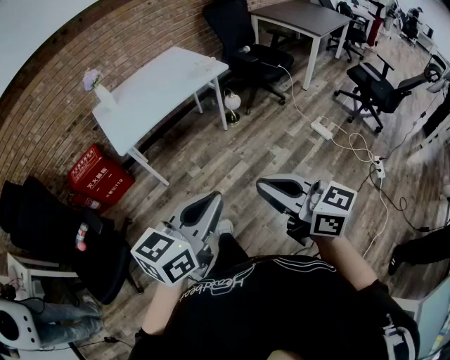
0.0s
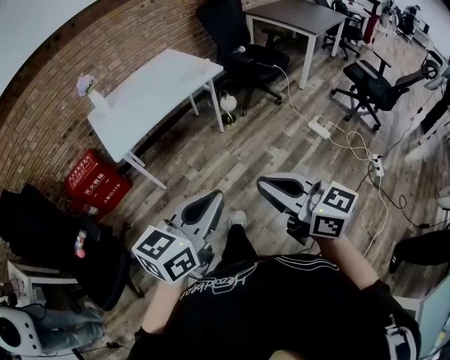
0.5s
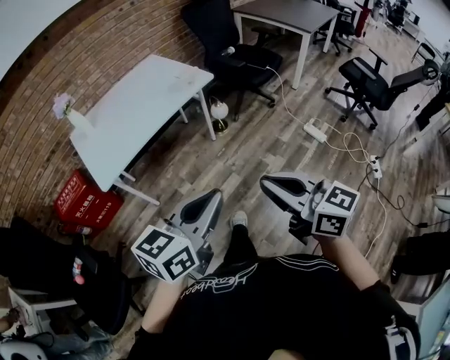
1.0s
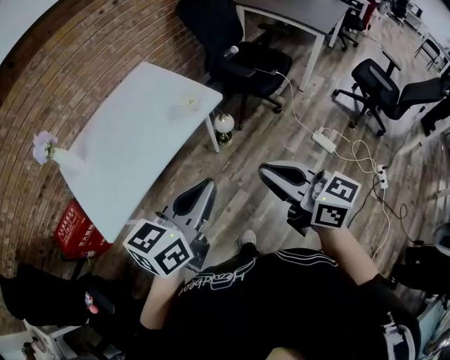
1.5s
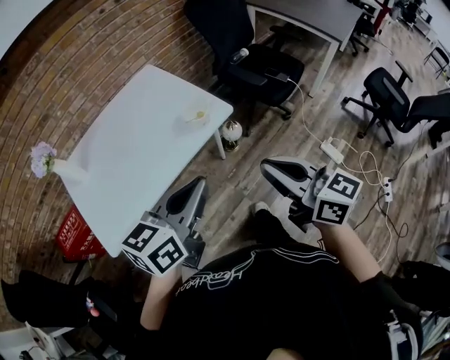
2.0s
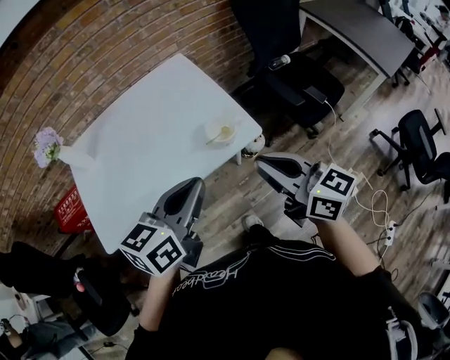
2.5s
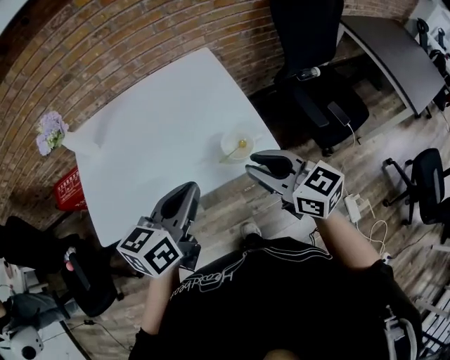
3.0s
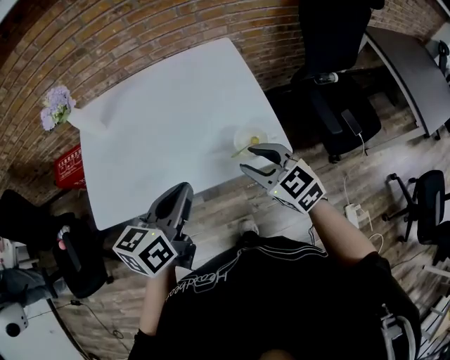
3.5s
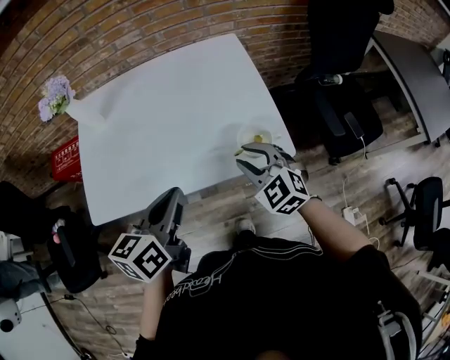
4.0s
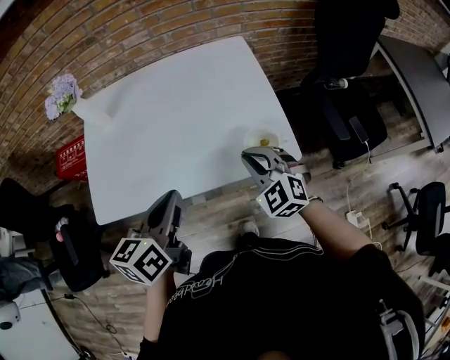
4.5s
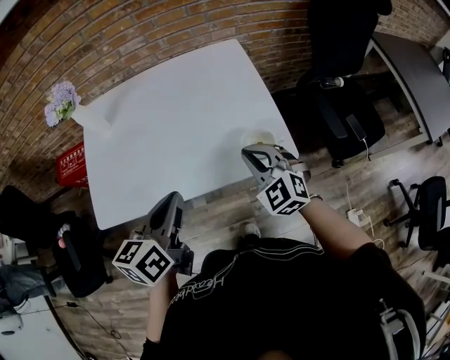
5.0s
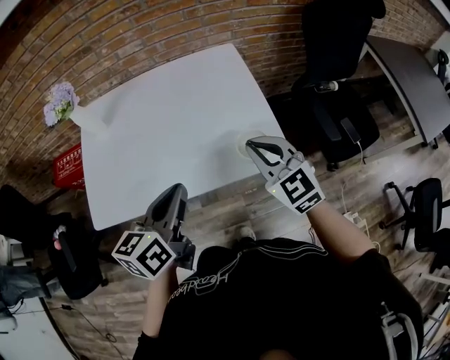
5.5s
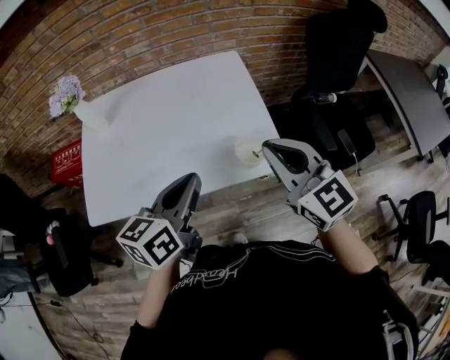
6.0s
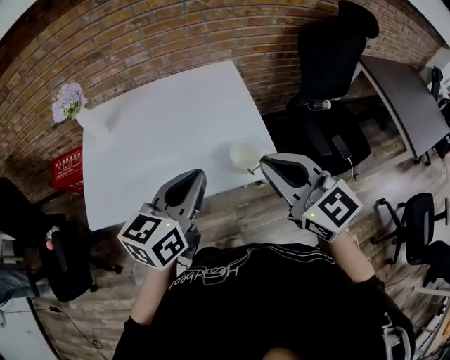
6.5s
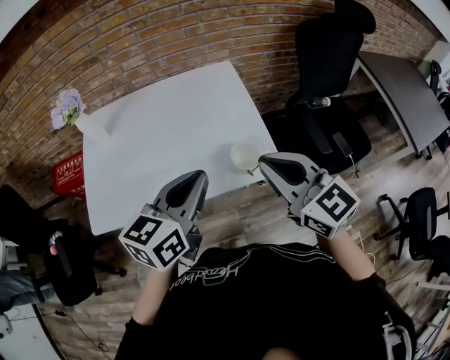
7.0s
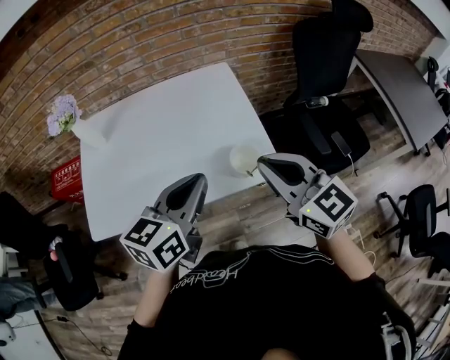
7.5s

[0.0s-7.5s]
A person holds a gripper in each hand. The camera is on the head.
0.0s to 2.0s: The pair of grippers is taken forward, approximately 50 cm.
2.0s to 4.0s: The left gripper moves about 20 cm, and swivels about 40 degrees. Meanwhile the right gripper shifts by some 35 cm, rolls counterclockwise, seen from behind, by roughly 60 degrees, and opens.
4.0s to 5.5s: The right gripper travels upward by roughly 10 cm, and closes its fingers.
5.5s to 7.5s: The left gripper travels to the right by about 5 cm, while the right gripper travels upward by roughly 10 cm.

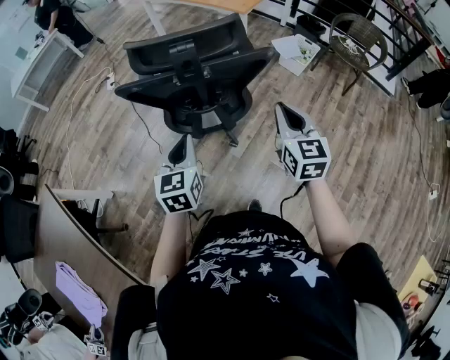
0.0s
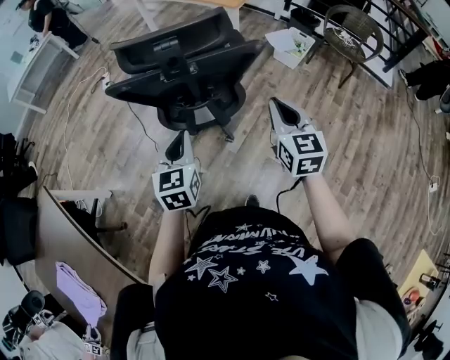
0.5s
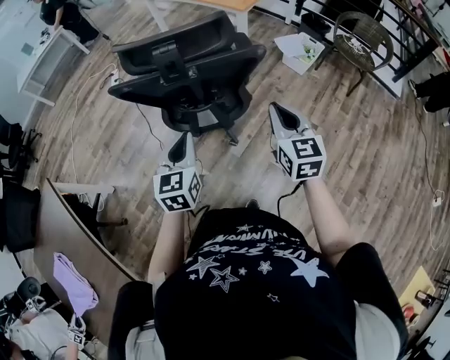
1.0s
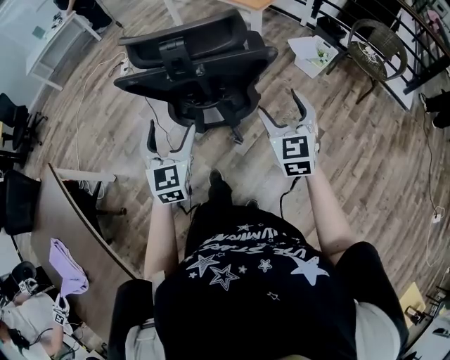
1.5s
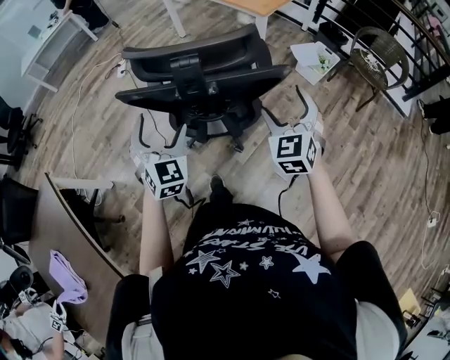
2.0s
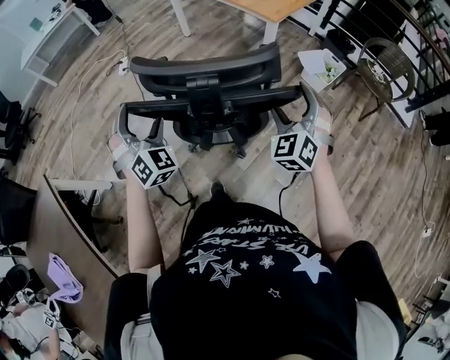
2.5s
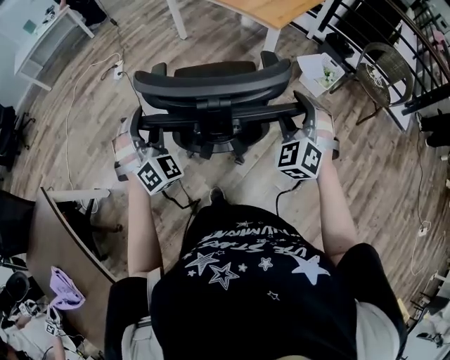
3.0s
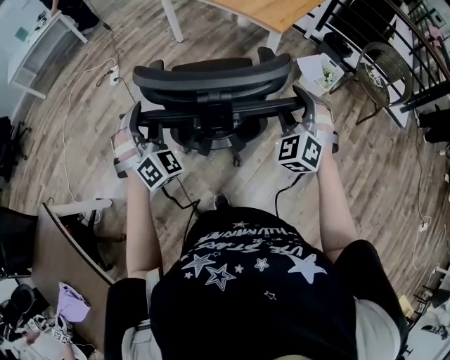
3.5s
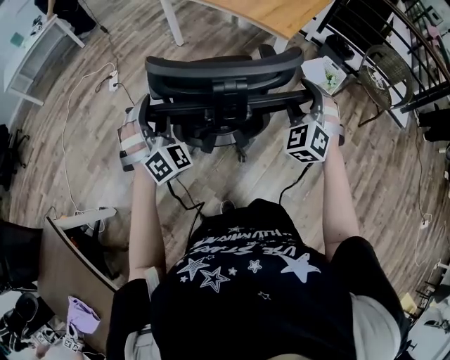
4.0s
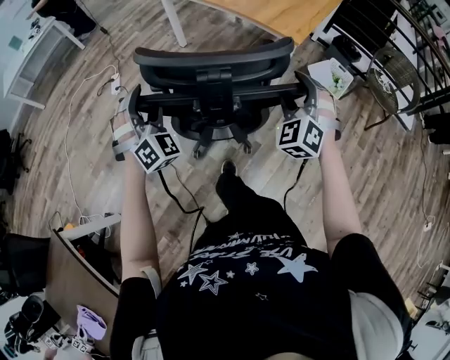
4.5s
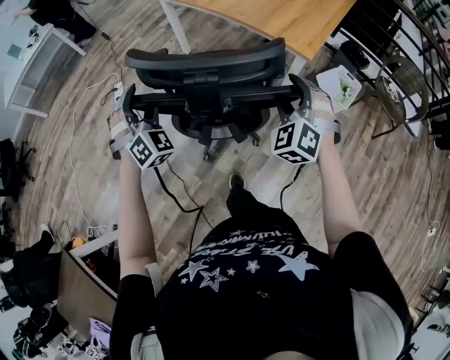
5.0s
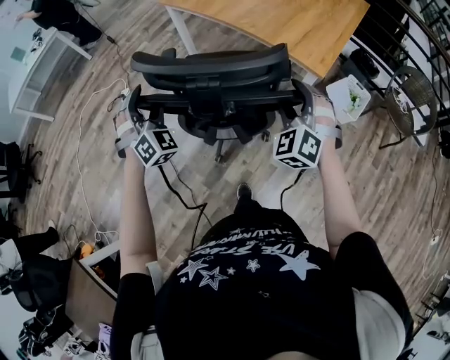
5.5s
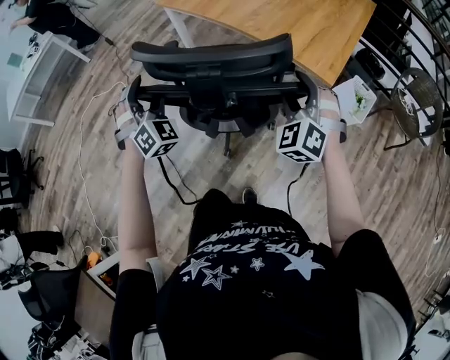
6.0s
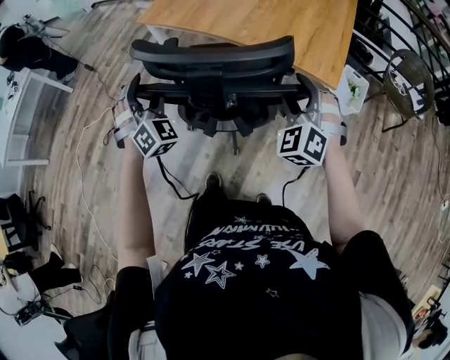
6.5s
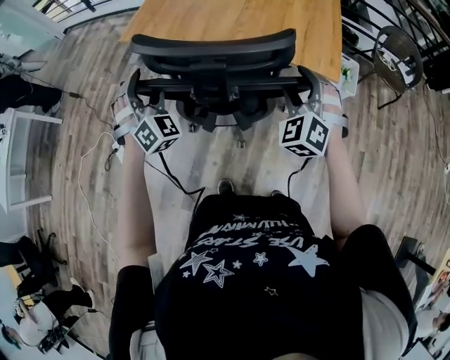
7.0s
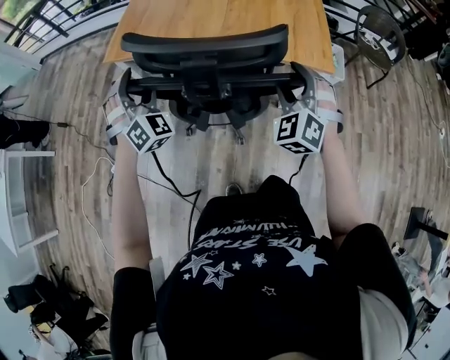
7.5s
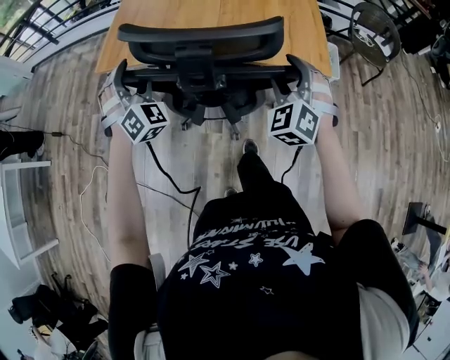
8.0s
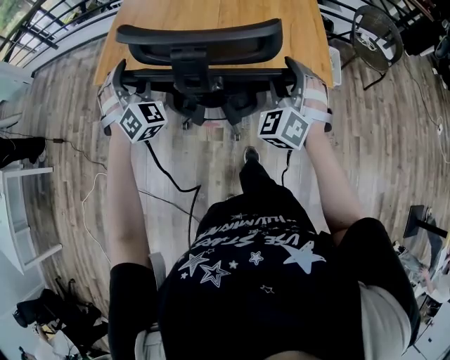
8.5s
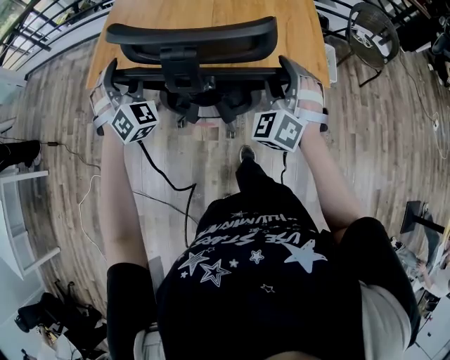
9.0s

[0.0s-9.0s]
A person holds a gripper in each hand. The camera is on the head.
0.0s to 2.0s: Both grippers move forward, about 10 cm. The left gripper swivels some 40 degrees, and opens up, while the right gripper swivels about 30 degrees, and opens its fingers.
2.0s to 4.5s: The grippers both shift forward by some 35 cm. The right gripper swivels about 30 degrees, and closes its fingers. Meanwhile the left gripper turns by approximately 30 degrees, and closes its fingers.
4.5s to 7.0s: Both grippers travel together forward, roughly 40 cm. The right gripper changes its angle by some 20 degrees. Meanwhile the left gripper turns by some 20 degrees.
7.0s to 9.0s: The right gripper goes about 10 cm forward, while the left gripper heads forward, covering about 20 cm.

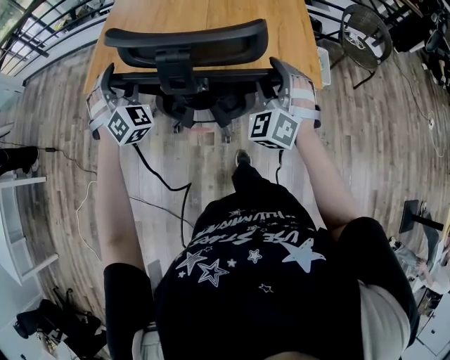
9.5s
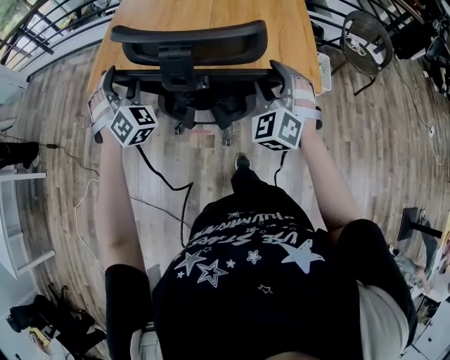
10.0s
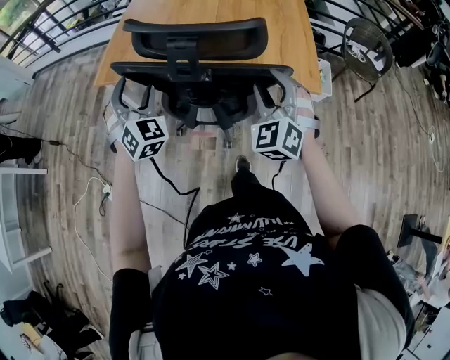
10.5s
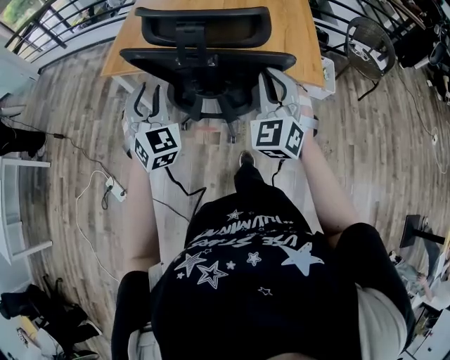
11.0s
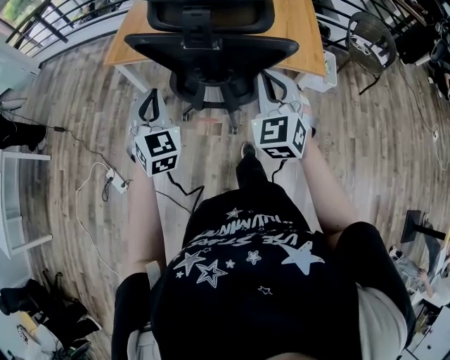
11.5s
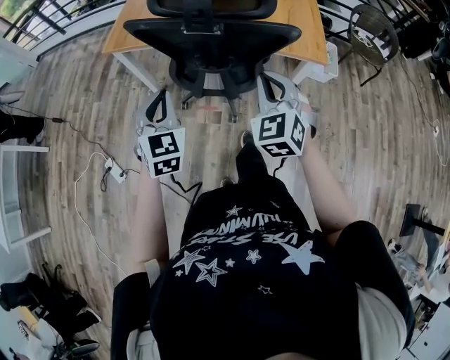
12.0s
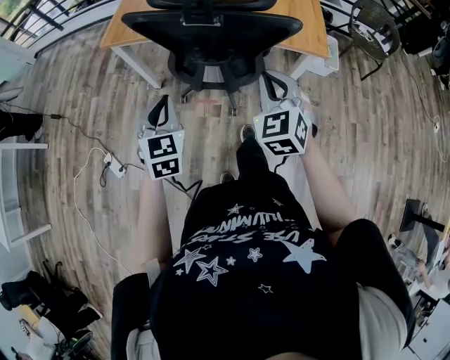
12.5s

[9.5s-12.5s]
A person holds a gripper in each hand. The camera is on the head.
9.5s to 11.0s: The left gripper heads backward, covering roughly 15 cm, changes its angle by approximately 30 degrees, and closes its fingers. Meanwhile the right gripper travels backward and upward by roughly 10 cm, and closes its fingers.
11.0s to 12.5s: The grippers both shift backward and downward by approximately 10 cm. The left gripper turns by about 30 degrees.

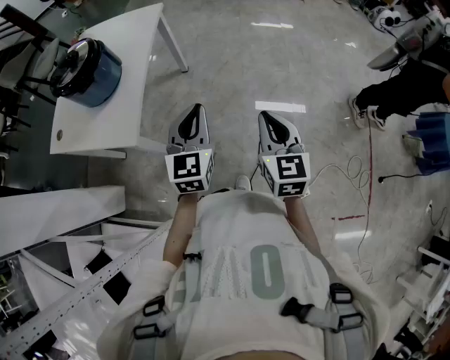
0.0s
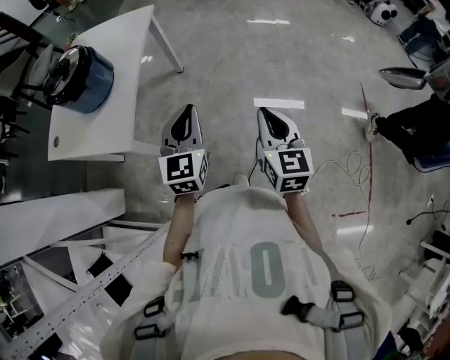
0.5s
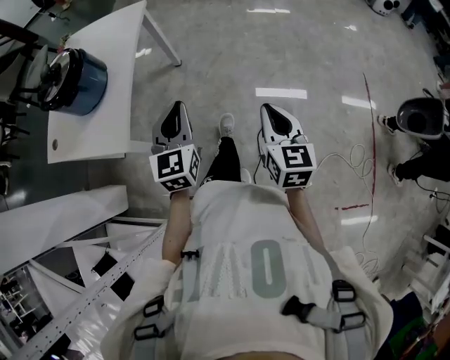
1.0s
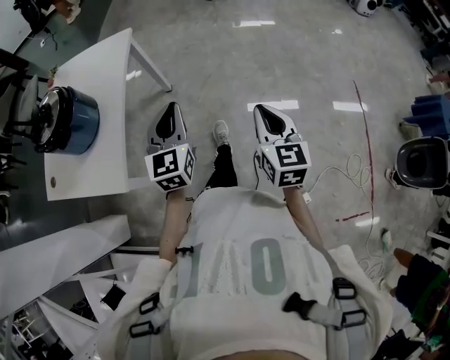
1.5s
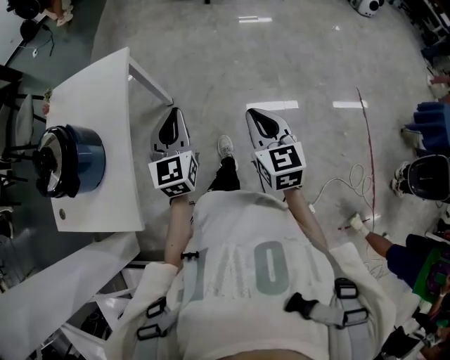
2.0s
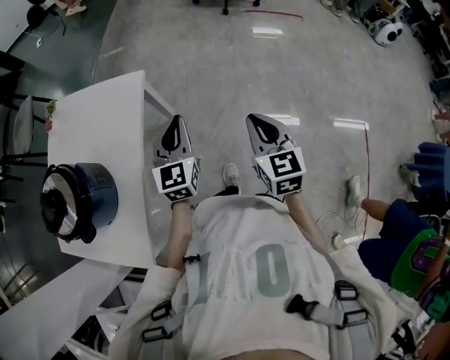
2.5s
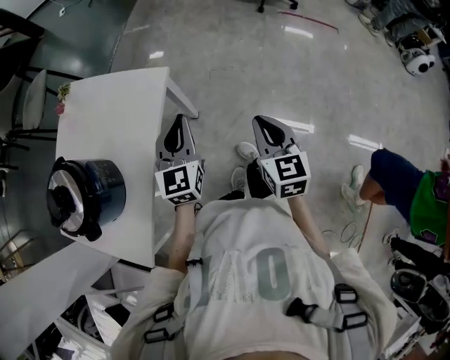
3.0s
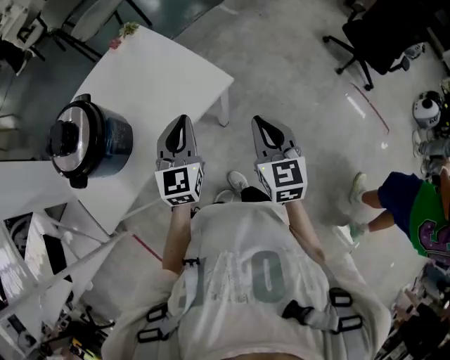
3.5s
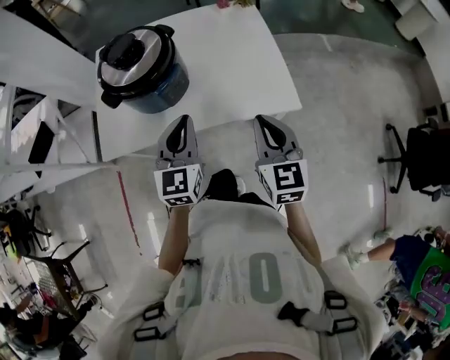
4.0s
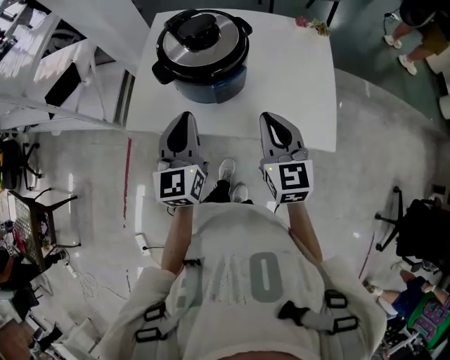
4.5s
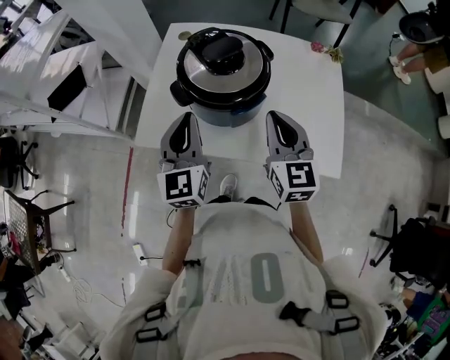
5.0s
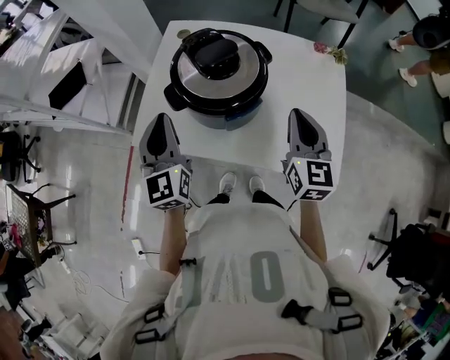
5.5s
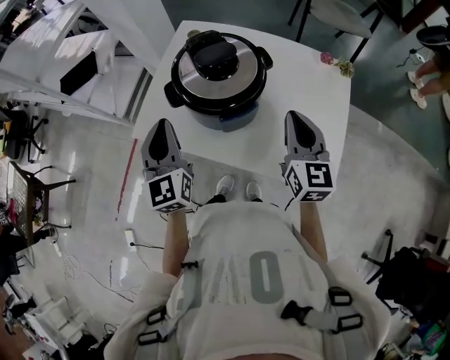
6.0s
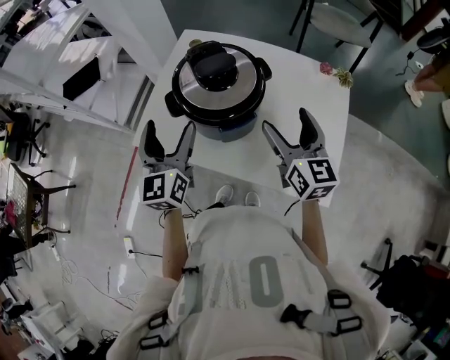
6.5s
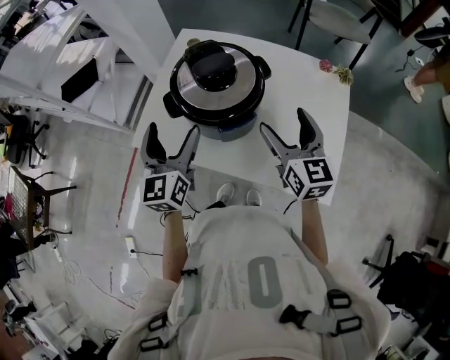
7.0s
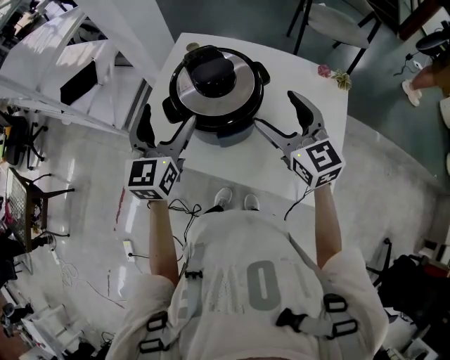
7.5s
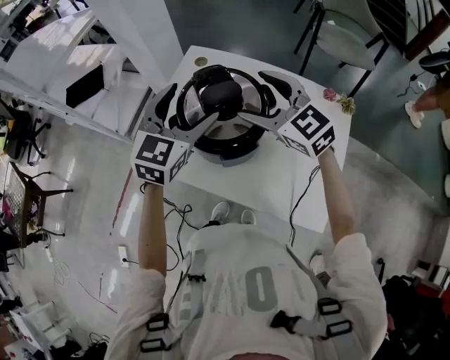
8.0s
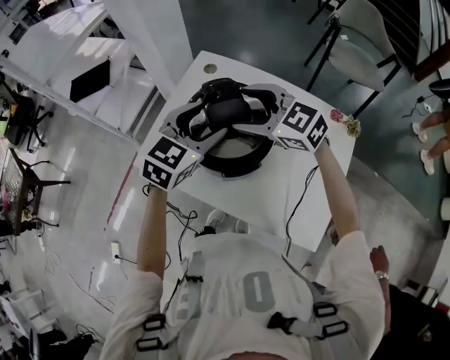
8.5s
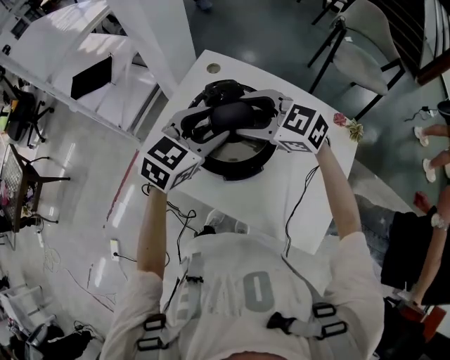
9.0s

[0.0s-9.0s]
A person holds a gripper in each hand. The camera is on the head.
0.0s to 2.0s: Both grippers travel together forward, about 30 cm.
2.0s to 4.5s: The left gripper changes place by some 30 cm, and turns by approximately 100 degrees. Meanwhile the right gripper ends up approximately 50 cm from where it was, and rotates approximately 100 degrees.
4.5s to 7.0s: The left gripper shifts some 10 cm forward, and opens. Meanwhile the right gripper goes roughly 15 cm forward and to the right, and opens.
7.0s to 9.0s: The left gripper heads to the right and forward, covering some 15 cm, changes its angle by some 40 degrees, and closes its fingers. Meanwhile the right gripper moves forward and to the left, about 20 cm, and turns by approximately 70 degrees.
